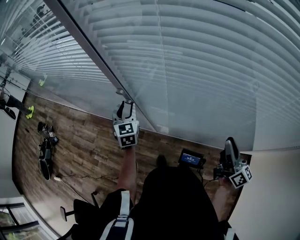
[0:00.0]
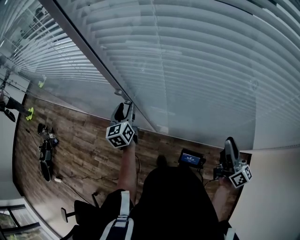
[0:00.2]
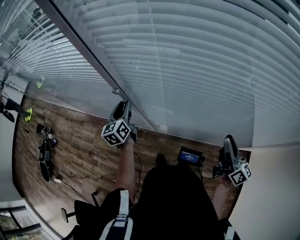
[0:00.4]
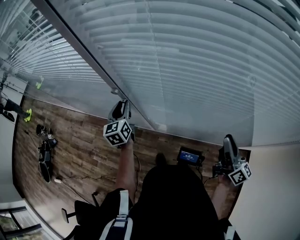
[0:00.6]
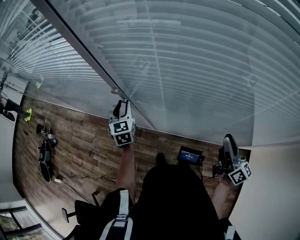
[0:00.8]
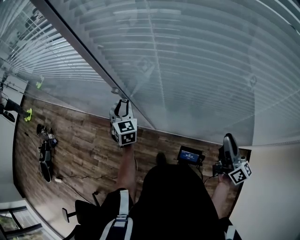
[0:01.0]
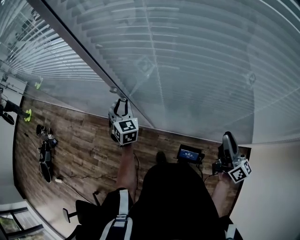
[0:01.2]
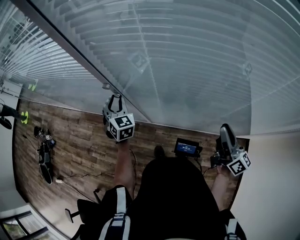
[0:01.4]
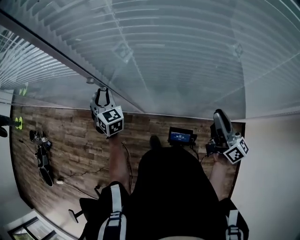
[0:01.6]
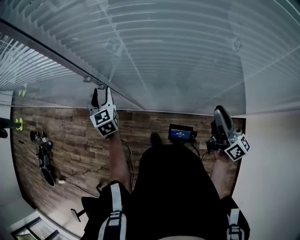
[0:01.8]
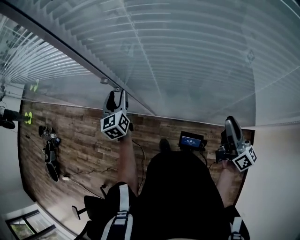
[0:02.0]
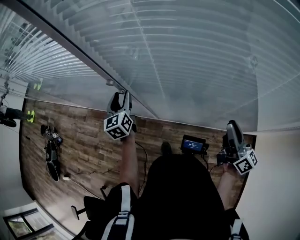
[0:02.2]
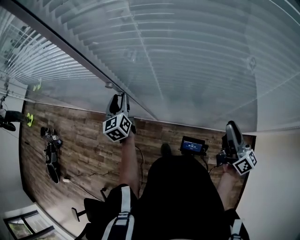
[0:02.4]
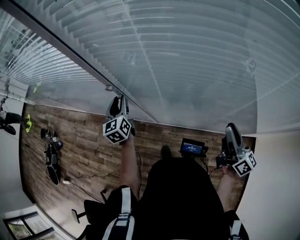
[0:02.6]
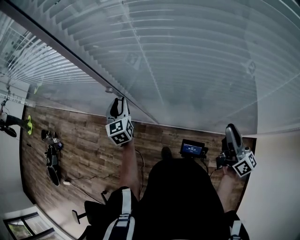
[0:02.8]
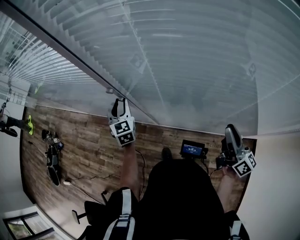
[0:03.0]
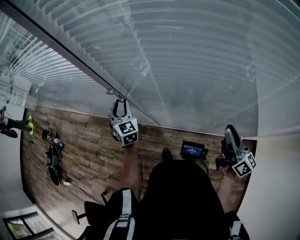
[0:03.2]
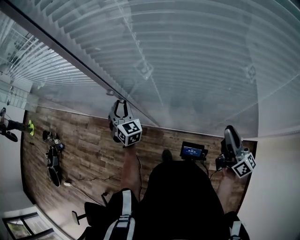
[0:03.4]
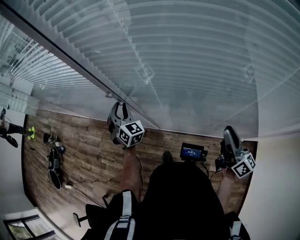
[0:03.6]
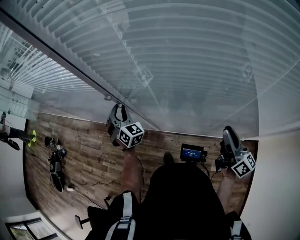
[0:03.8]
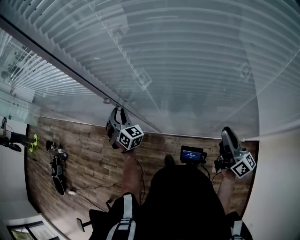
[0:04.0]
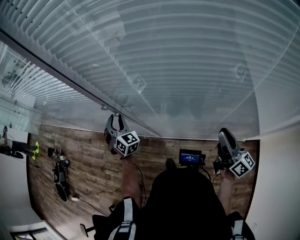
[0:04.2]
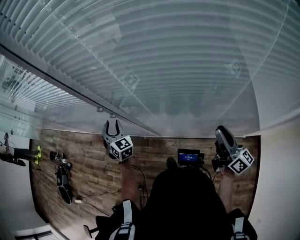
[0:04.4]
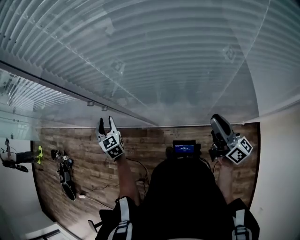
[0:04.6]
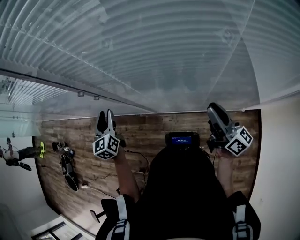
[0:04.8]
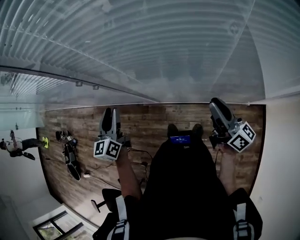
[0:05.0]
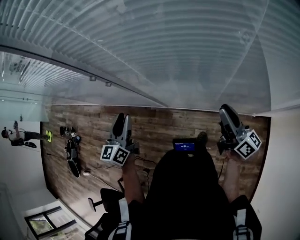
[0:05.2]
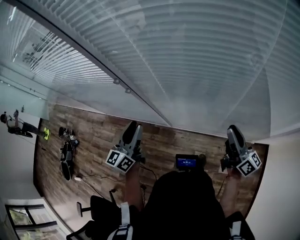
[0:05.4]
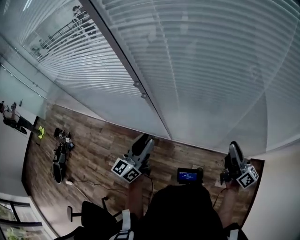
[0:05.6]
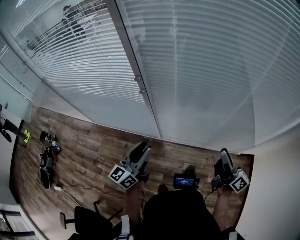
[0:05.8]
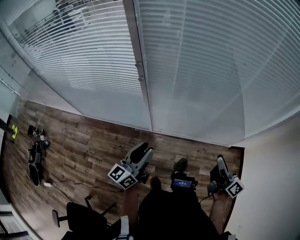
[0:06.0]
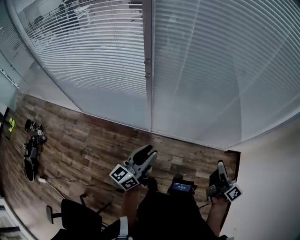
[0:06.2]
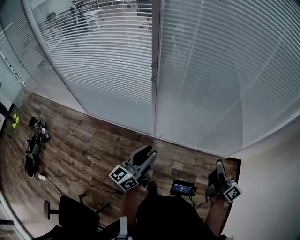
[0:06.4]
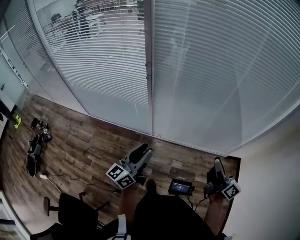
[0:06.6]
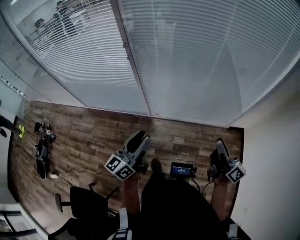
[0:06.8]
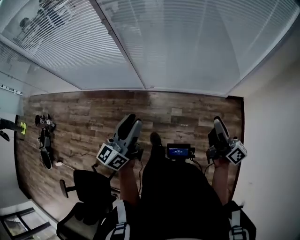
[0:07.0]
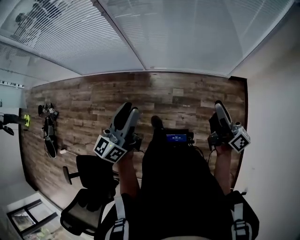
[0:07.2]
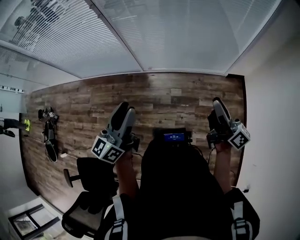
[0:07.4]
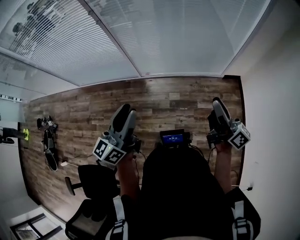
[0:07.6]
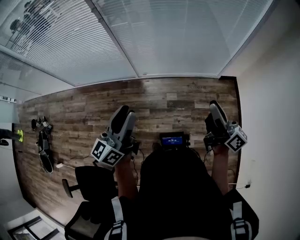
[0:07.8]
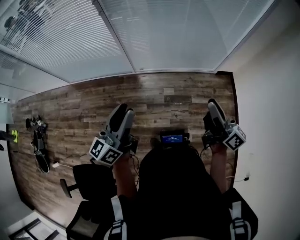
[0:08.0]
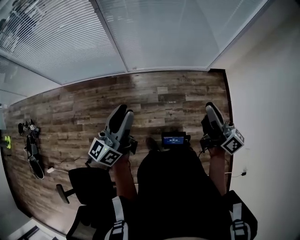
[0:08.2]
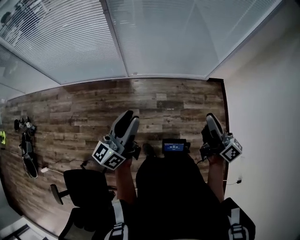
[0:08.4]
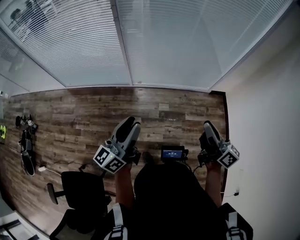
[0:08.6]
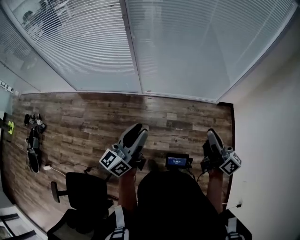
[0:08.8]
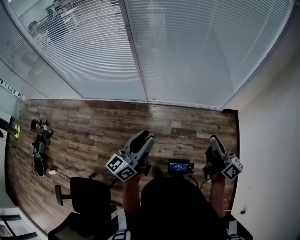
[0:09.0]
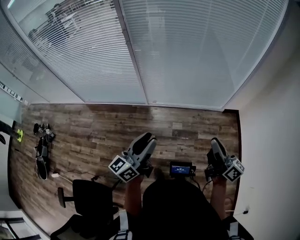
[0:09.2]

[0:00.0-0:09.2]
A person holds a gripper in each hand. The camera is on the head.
0:04.6 to 0:06.2: The right gripper shifts by some 30 cm; the left gripper changes place by approximately 35 cm, and angles its fingers upward, by some 30 degrees.
0:06.2 to 0:07.6: The grippers both shift backward and to the right by some 25 cm.
0:07.6 to 0:09.2: The right gripper travels to the left by roughly 5 cm. The left gripper reaches roughly 10 cm to the left, then returns.

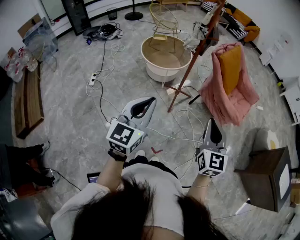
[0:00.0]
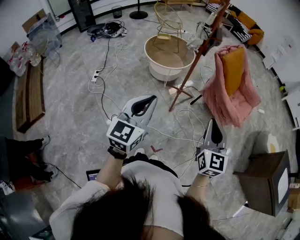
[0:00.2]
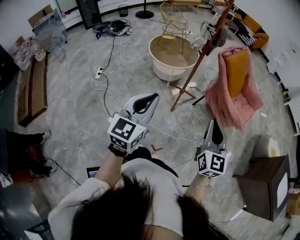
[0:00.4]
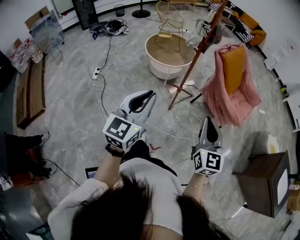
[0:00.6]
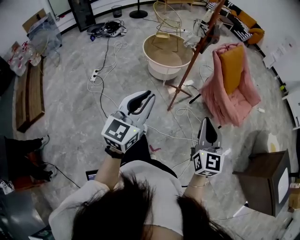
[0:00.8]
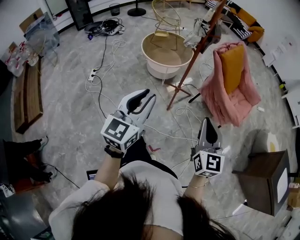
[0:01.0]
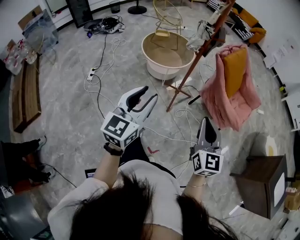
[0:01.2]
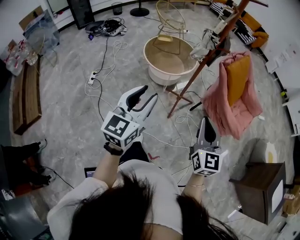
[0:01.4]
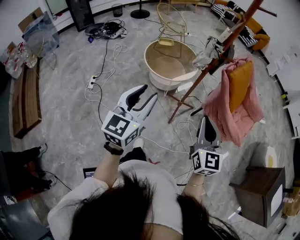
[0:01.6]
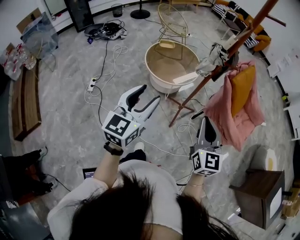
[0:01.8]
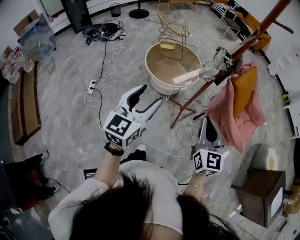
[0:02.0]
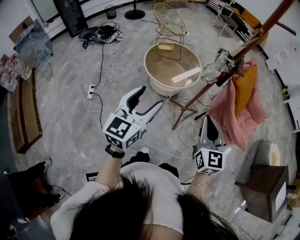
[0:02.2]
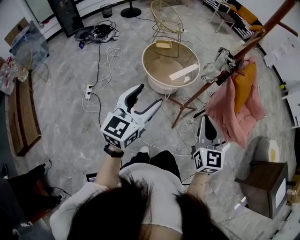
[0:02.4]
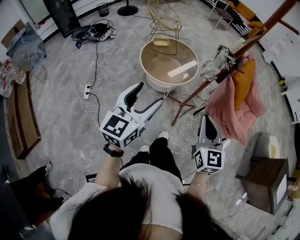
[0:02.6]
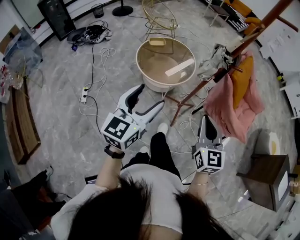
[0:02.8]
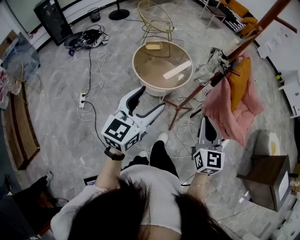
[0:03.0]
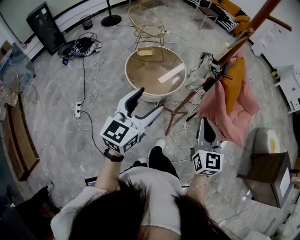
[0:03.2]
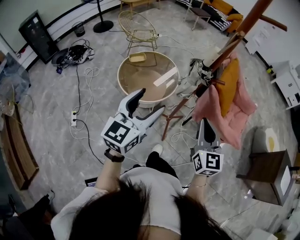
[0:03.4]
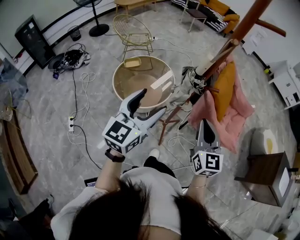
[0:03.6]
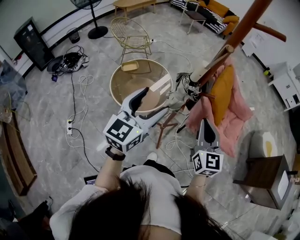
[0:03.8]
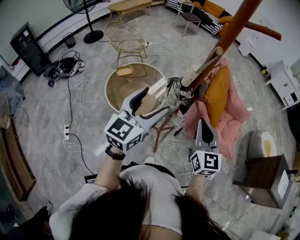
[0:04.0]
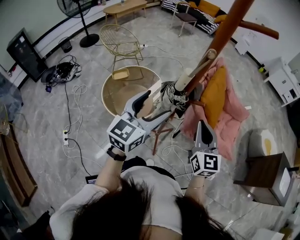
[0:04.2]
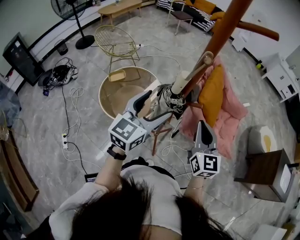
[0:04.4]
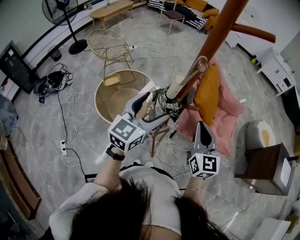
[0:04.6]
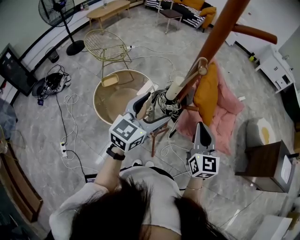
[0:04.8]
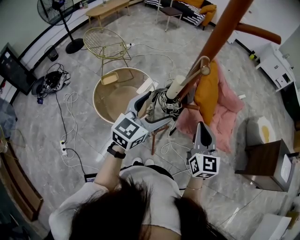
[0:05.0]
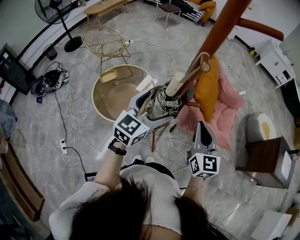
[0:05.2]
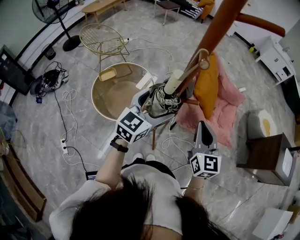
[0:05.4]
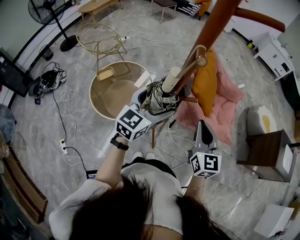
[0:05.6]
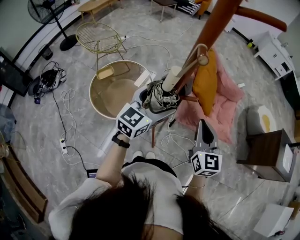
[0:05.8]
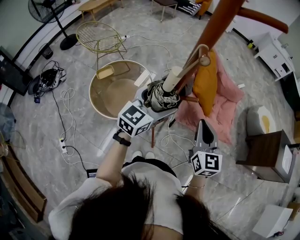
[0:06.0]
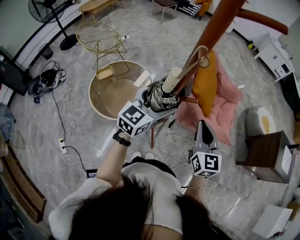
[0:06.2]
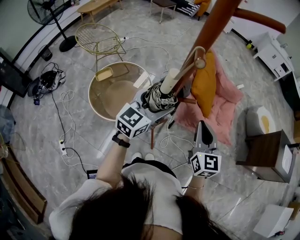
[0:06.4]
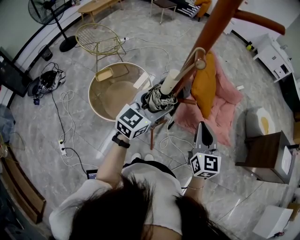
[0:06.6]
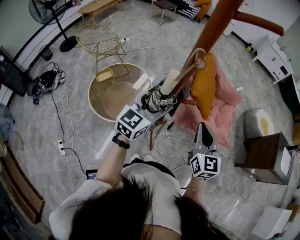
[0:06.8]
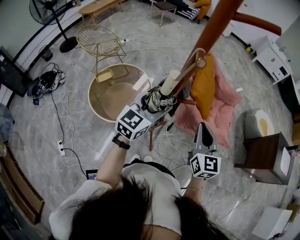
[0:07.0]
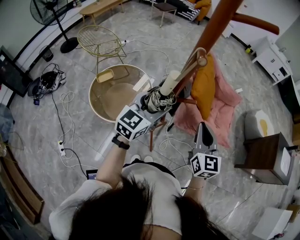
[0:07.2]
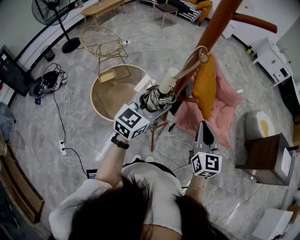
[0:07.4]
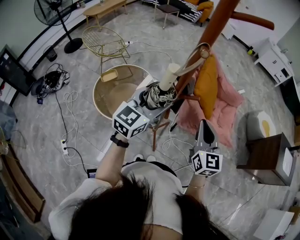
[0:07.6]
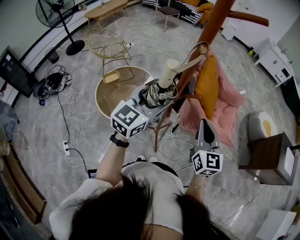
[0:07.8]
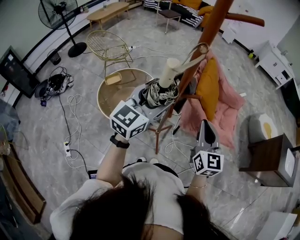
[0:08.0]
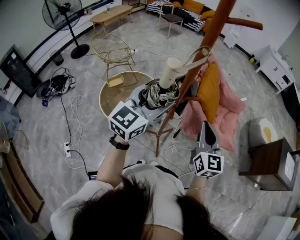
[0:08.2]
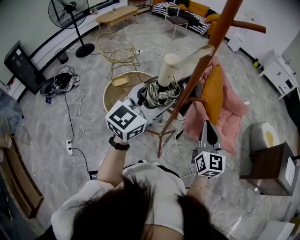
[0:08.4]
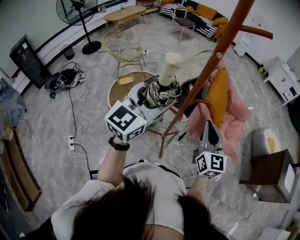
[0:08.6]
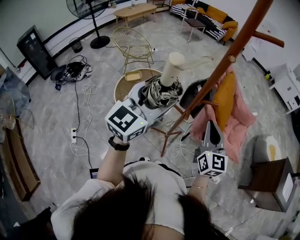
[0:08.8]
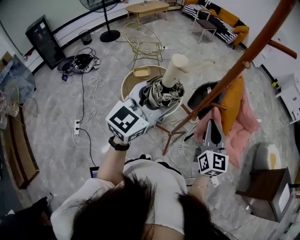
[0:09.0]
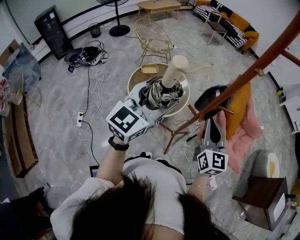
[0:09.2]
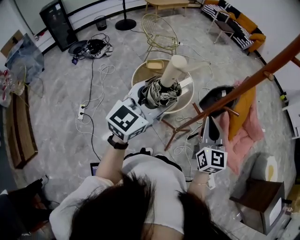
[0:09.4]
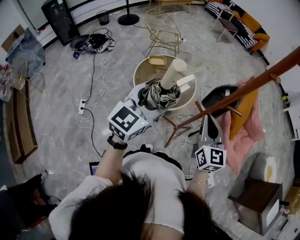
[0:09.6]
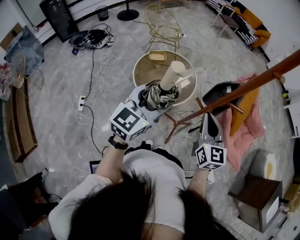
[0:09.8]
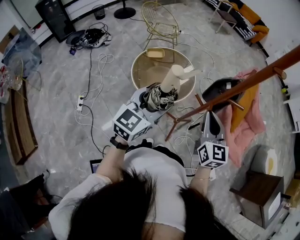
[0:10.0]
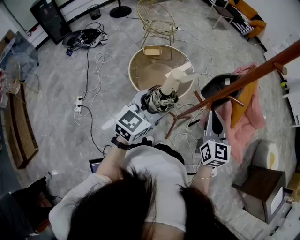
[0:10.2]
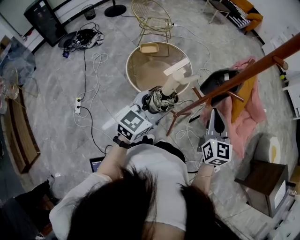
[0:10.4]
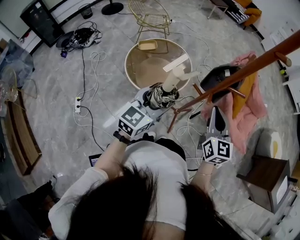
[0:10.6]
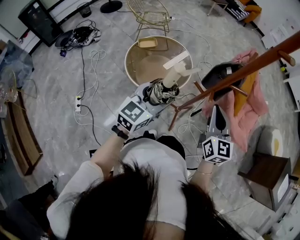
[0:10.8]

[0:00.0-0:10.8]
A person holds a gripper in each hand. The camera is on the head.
0:00.0 to 0:01.6: The right gripper is displaced forward and to the left by approximately 20 cm. The left gripper shifts approximately 15 cm forward.
0:01.6 to 0:03.0: The right gripper is displaced forward and to the left by roughly 15 cm. The left gripper shifts some 15 cm forward, and opens.
0:03.0 to 0:04.6: The grippers both shift forward and to the right by about 30 cm. The left gripper swivels roughly 20 degrees.
0:04.6 to 0:06.2: The left gripper heads forward, covering approximately 5 cm.
0:06.2 to 0:07.8: The left gripper goes some 10 cm upward and backward, and closes its fingers.
0:07.8 to 0:09.2: The left gripper shifts roughly 15 cm to the left, backward and upward, and turns by about 20 degrees. The right gripper moves to the left, roughly 10 cm.
0:09.2 to 0:10.8: The right gripper goes approximately 5 cm downward; the left gripper is displaced downward by approximately 15 cm.

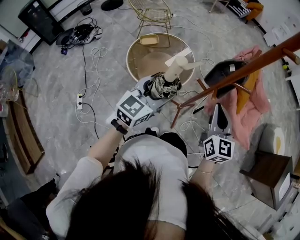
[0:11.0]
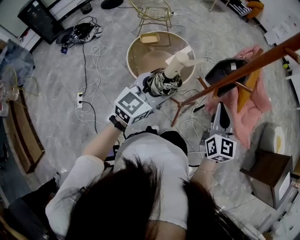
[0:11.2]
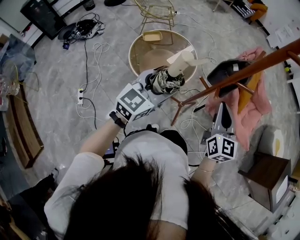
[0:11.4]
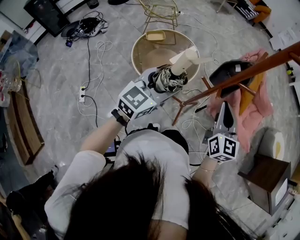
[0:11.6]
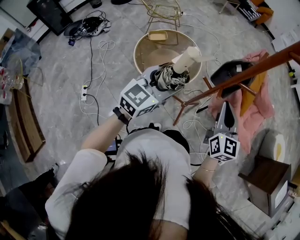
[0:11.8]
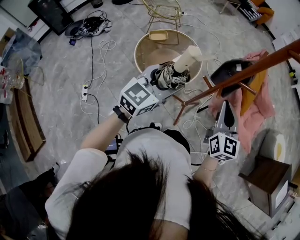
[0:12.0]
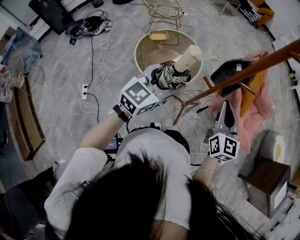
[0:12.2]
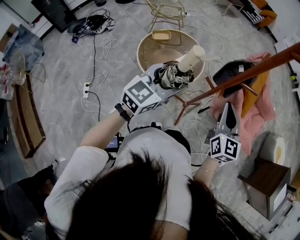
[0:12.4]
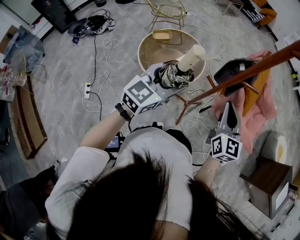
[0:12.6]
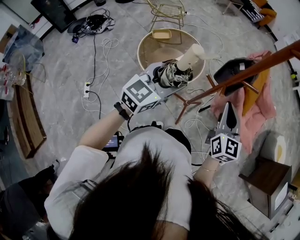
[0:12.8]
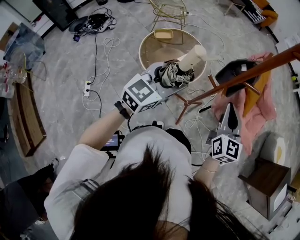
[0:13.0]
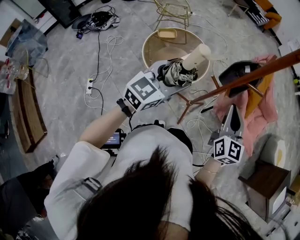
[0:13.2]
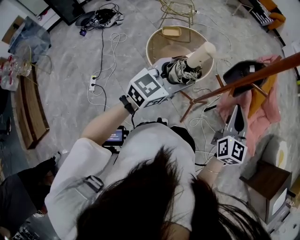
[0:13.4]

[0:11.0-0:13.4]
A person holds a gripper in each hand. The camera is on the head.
0:11.0 to 0:13.4: There are only small adjustments of the grippers.

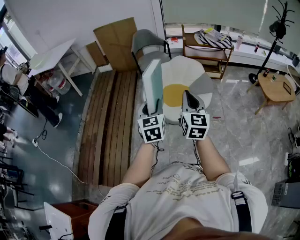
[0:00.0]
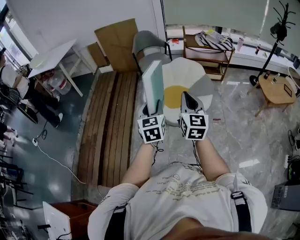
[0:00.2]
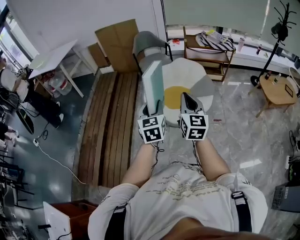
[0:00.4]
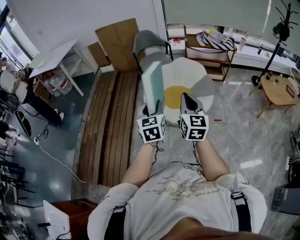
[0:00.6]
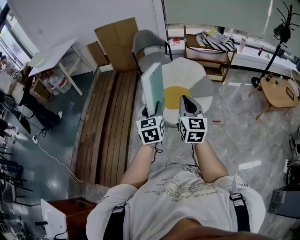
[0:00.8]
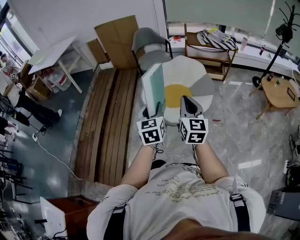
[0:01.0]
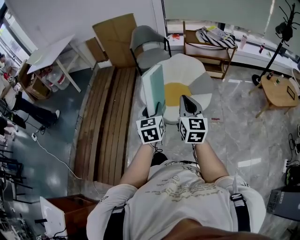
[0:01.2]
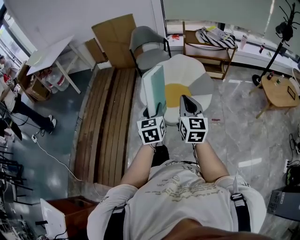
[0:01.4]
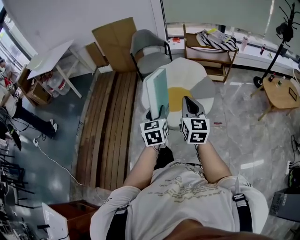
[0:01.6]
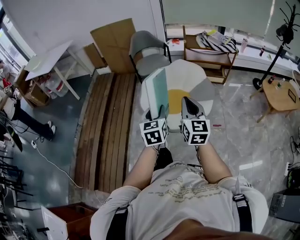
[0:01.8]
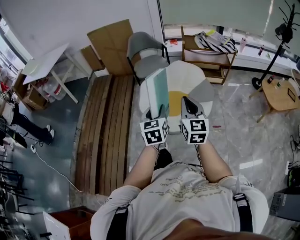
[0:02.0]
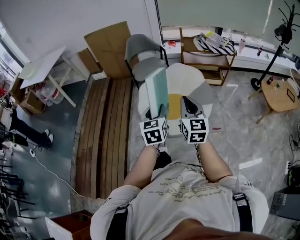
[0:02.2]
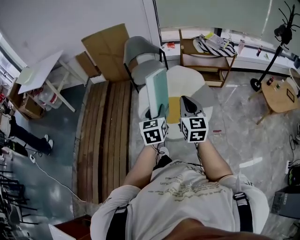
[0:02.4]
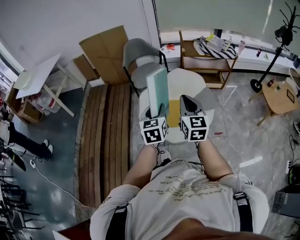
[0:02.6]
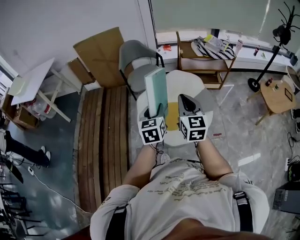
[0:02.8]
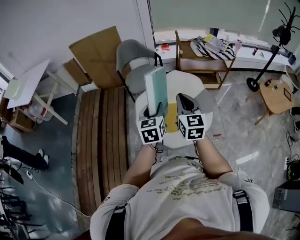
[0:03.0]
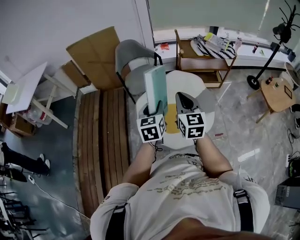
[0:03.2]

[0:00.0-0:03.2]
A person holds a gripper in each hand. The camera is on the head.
0:00.0 to 0:01.6: The left gripper goes about 10 cm to the right, forward and downward. Meanwhile the right gripper shifts approximately 5 cm forward.
0:01.6 to 0:03.2: The grippers both shift forward by about 30 cm.
